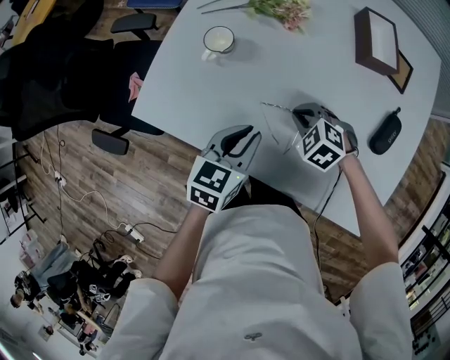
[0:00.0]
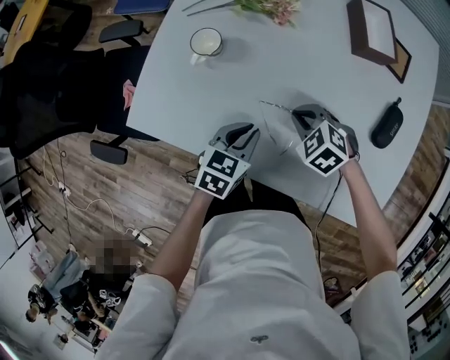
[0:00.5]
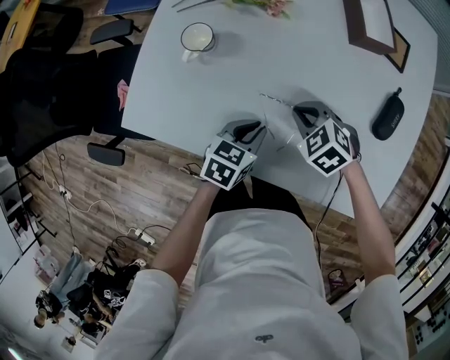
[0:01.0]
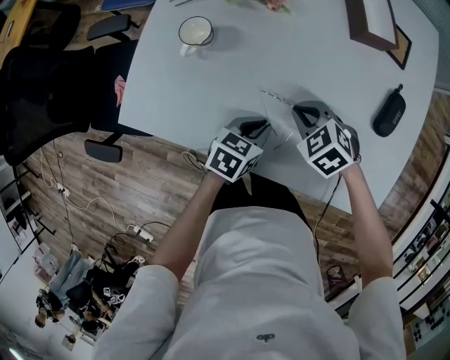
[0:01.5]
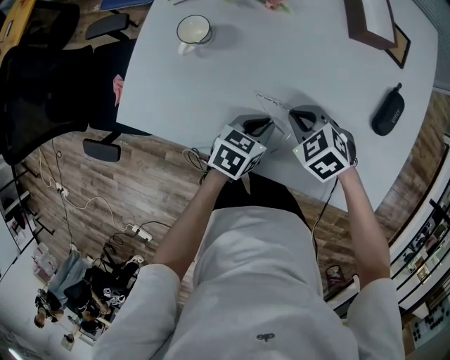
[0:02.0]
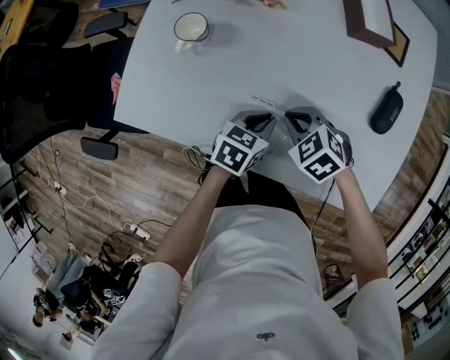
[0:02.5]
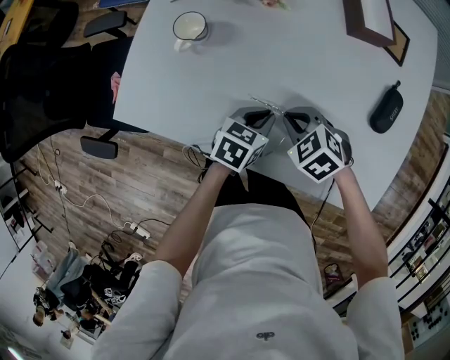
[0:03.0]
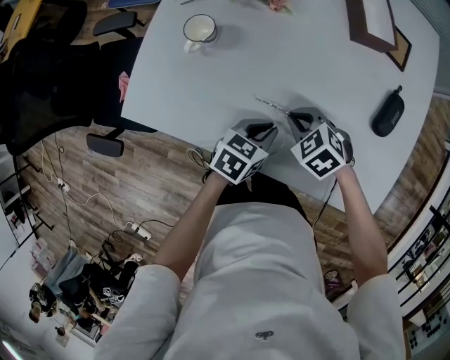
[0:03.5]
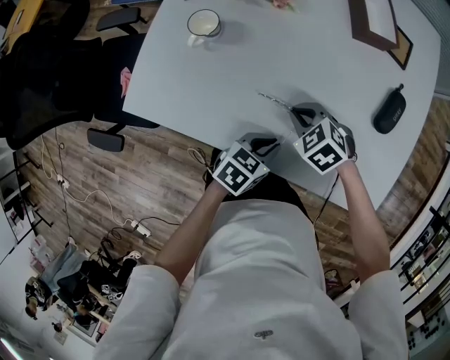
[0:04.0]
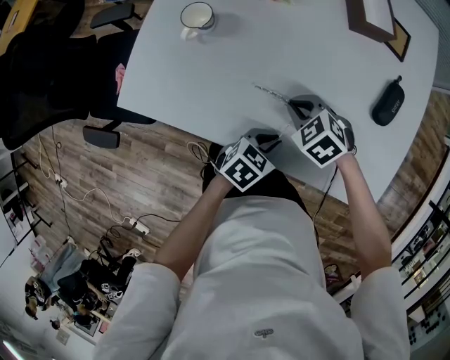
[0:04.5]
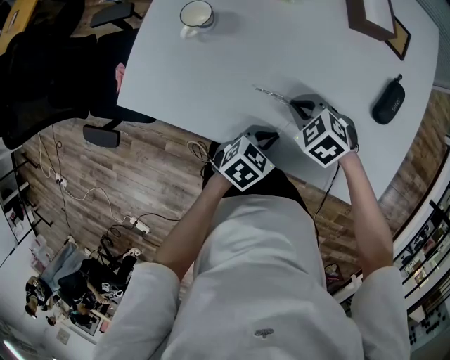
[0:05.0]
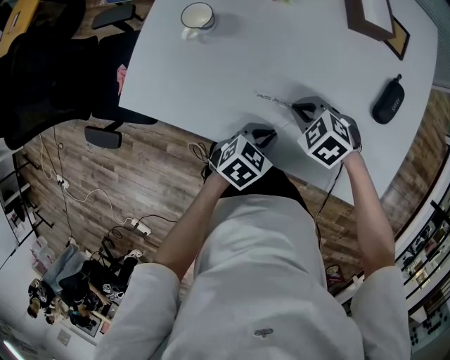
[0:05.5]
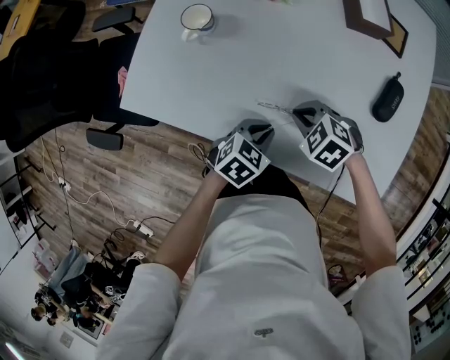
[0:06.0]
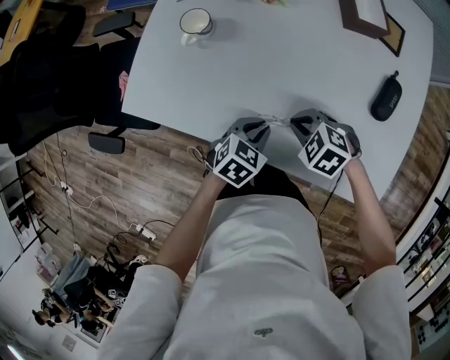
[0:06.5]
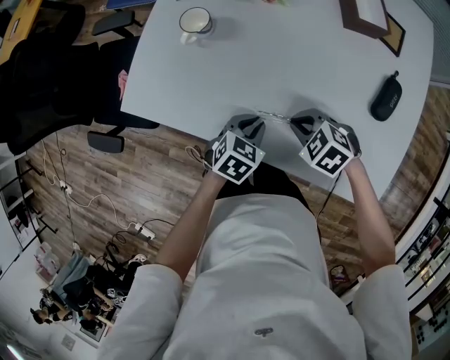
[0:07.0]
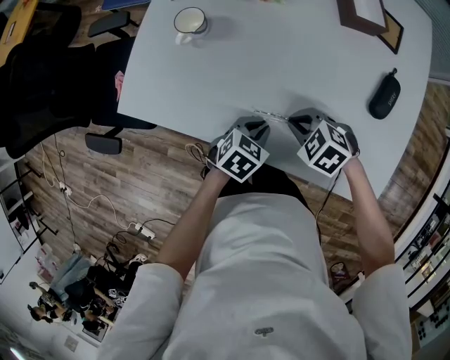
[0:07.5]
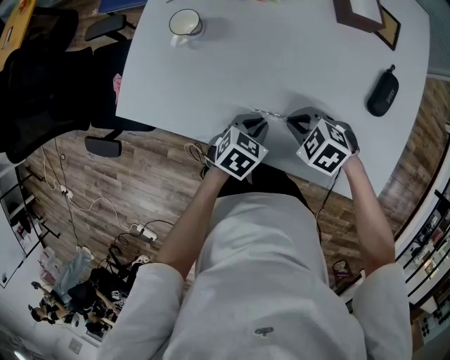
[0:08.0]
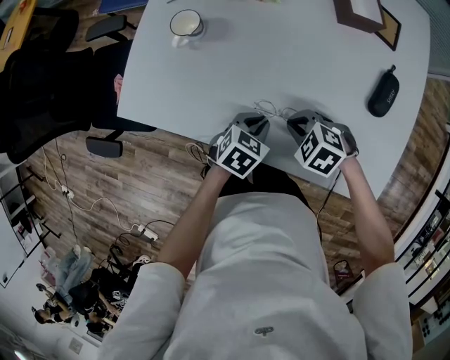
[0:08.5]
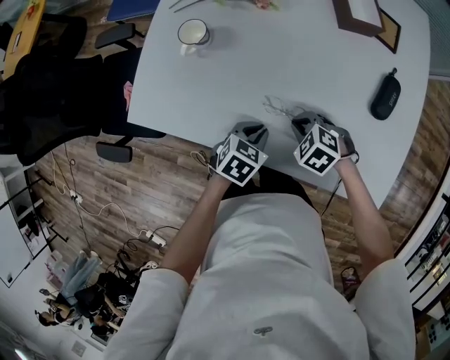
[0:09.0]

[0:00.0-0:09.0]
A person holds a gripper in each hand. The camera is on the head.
0:00.0 to 0:02.0: The left gripper is displaced downward and to the right by roughly 15 cm, and changes its angle by about 20 degrees.
0:02.0 to 0:04.5: The left gripper heads backward, covering roughly 10 cm.
0:04.5 to 0:07.0: The right gripper ends up approximately 5 cm from where it was, while the left gripper changes place by roughly 5 cm.
0:07.0 to 0:09.0: The grippers move only a little.

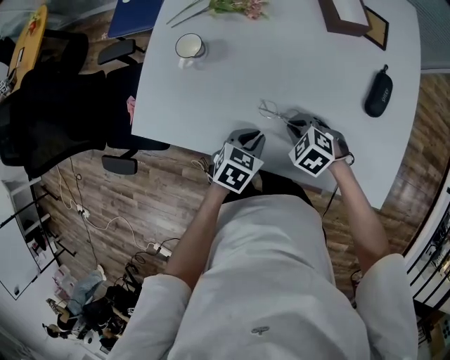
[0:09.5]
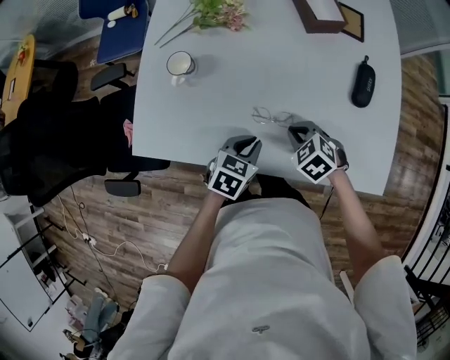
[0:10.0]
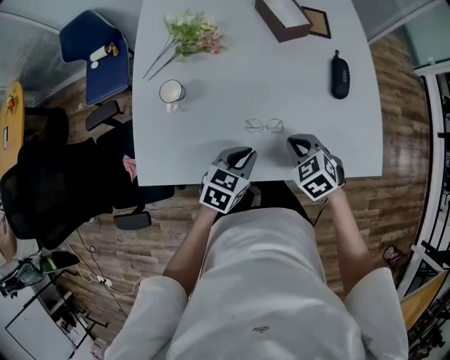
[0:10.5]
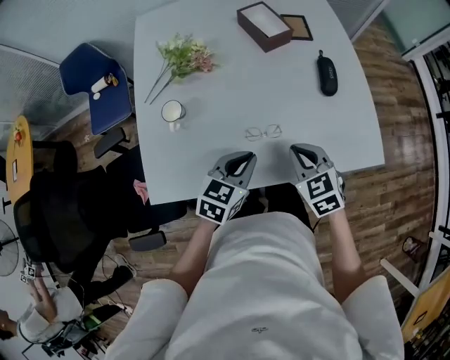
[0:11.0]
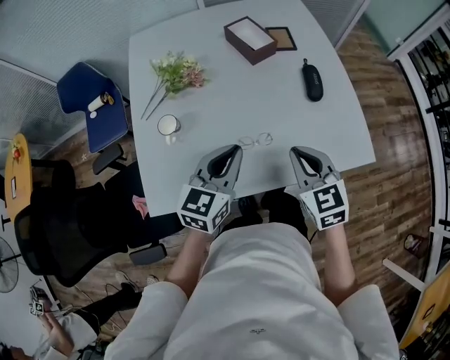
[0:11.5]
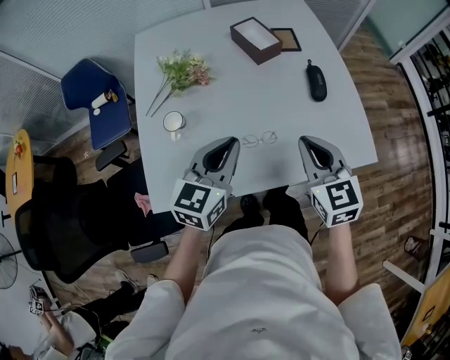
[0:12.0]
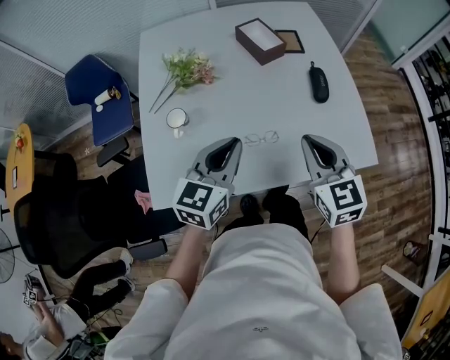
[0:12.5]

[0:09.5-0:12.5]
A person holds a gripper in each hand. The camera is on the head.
0:09.5 to 0:11.0: The two grippers go approximately 15 cm upward. The right gripper swivels roughly 50 degrees. Meanwhile the left gripper rotates roughly 30 degrees.
0:11.0 to 0:12.5: The grippers both shift upward by approximately 15 cm. The right gripper rotates some 20 degrees.

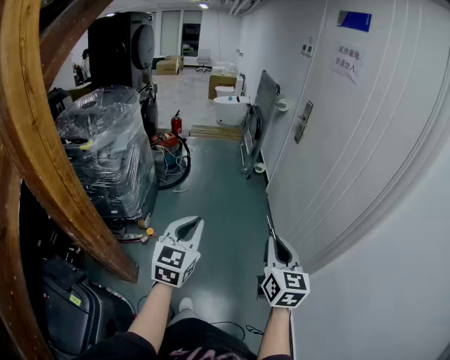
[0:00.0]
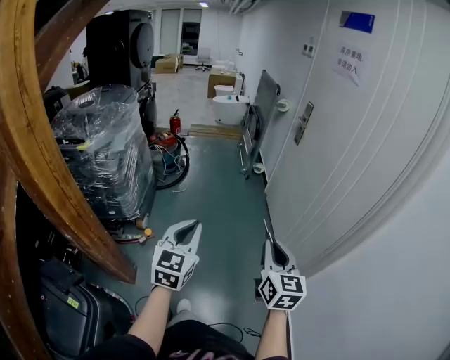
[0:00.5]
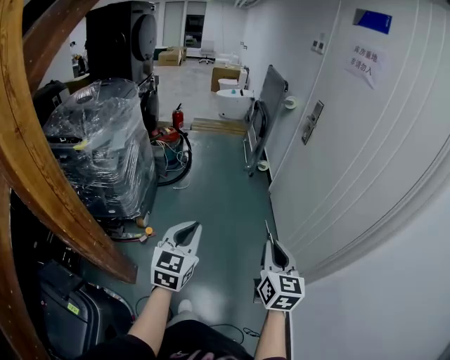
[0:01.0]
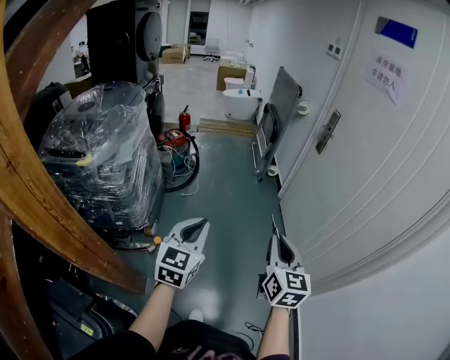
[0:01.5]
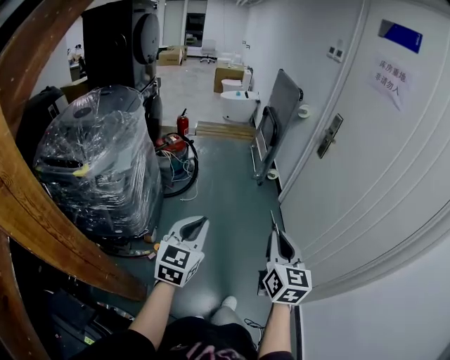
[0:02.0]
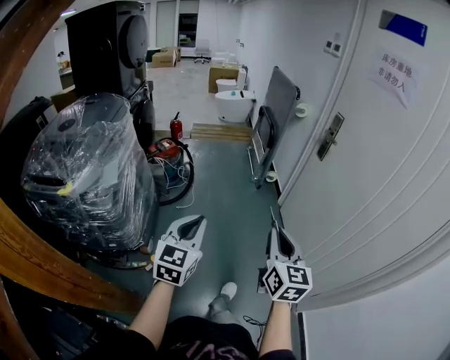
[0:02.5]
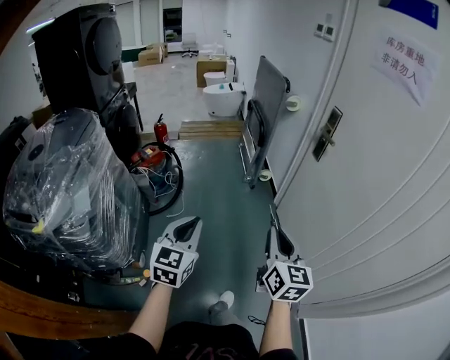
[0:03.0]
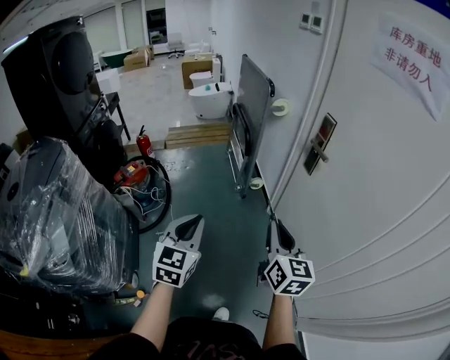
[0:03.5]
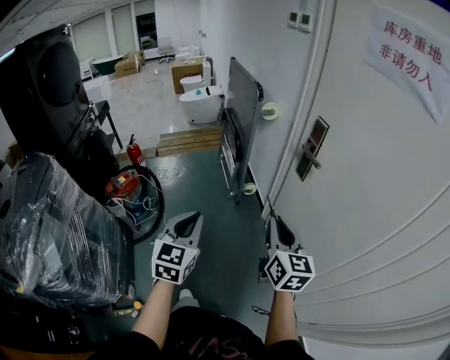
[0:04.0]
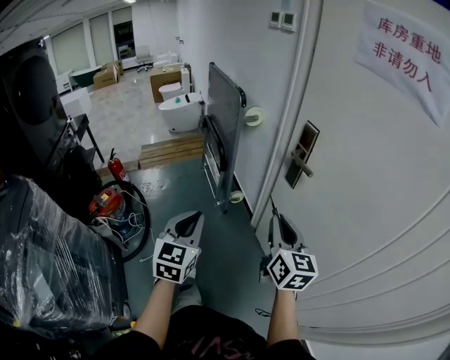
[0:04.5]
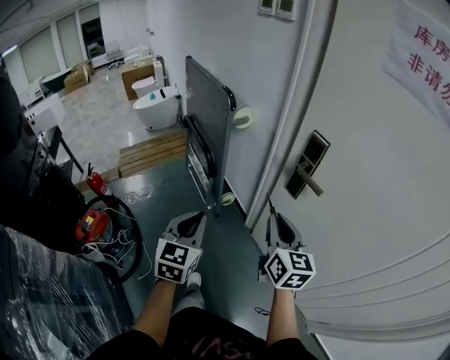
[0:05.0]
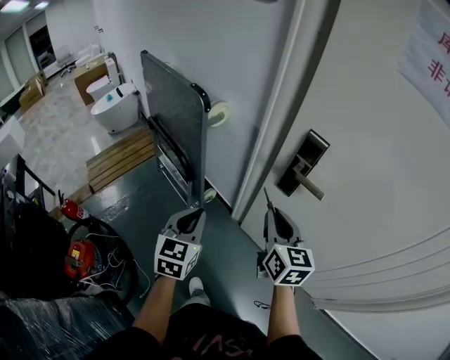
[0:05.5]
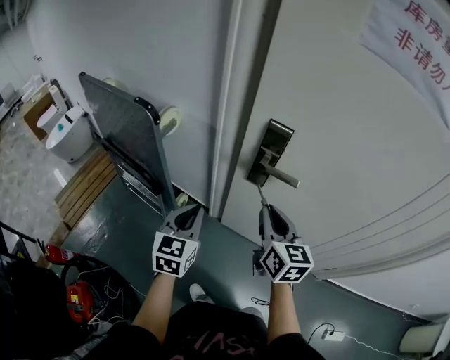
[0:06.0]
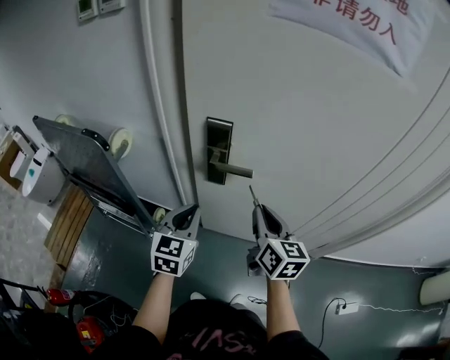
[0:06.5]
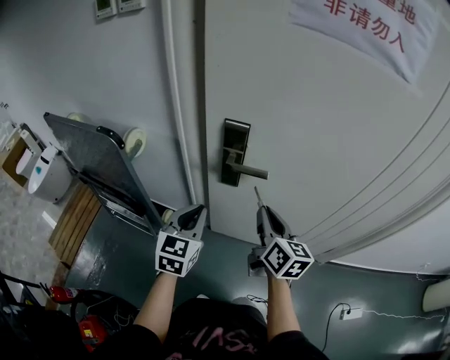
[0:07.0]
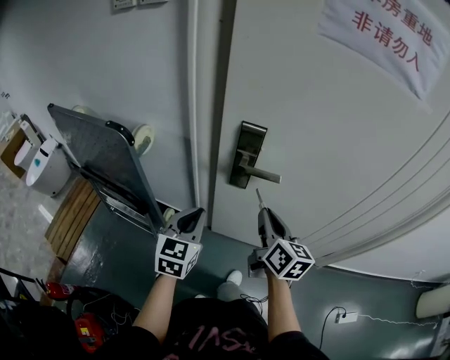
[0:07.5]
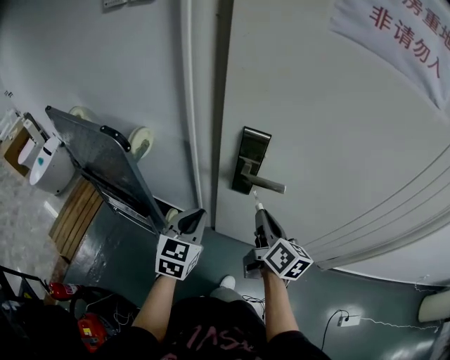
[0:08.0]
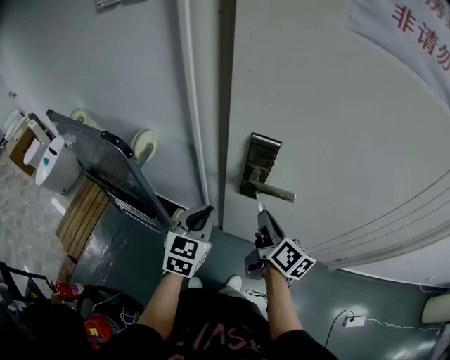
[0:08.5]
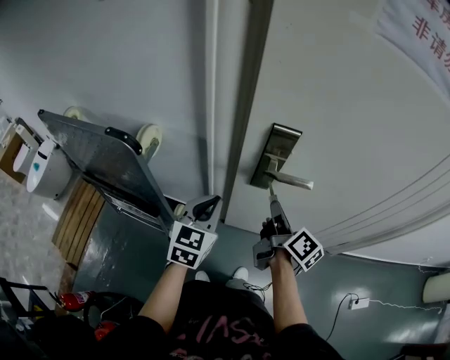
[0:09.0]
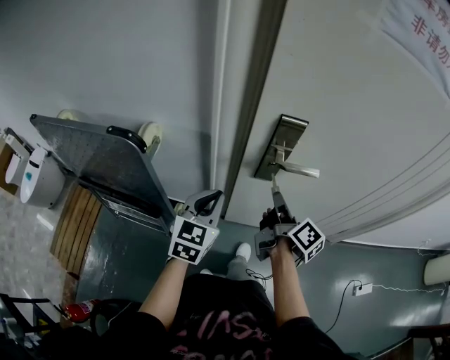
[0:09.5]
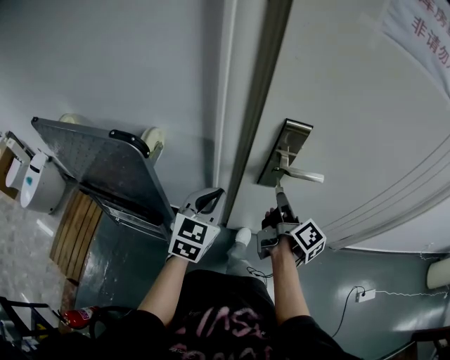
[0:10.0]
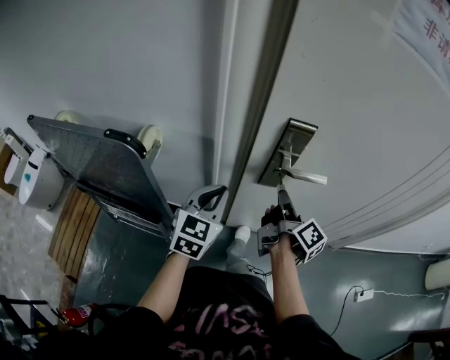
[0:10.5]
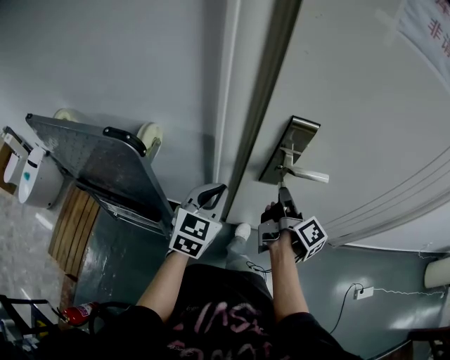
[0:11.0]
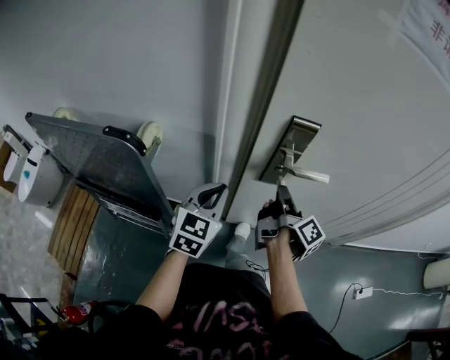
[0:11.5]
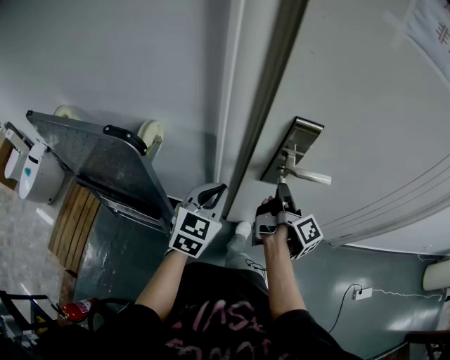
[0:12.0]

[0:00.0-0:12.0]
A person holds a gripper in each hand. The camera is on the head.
0:00.0 to 0:02.0: The grippers both shift forward and to the left by roughly 25 cm.
0:02.0 to 0:04.0: The pair of grippers is taken forward, approximately 50 cm.
0:04.0 to 0:06.0: The right gripper ends up about 25 cm from where it was, and swivels roughly 40 degrees; the left gripper changes place by approximately 40 cm, and swivels roughly 50 degrees.
0:06.0 to 0:08.0: The right gripper reaches some 10 cm to the right, then returns, and changes its angle by about 30 degrees. Meanwhile the left gripper goes roughly 5 cm forward.
0:08.0 to 0:10.0: The right gripper moves roughly 5 cm, and turns by approximately 40 degrees, while the left gripper shifts roughly 5 cm to the left.
0:10.0 to 0:12.0: The grippers move only a little.

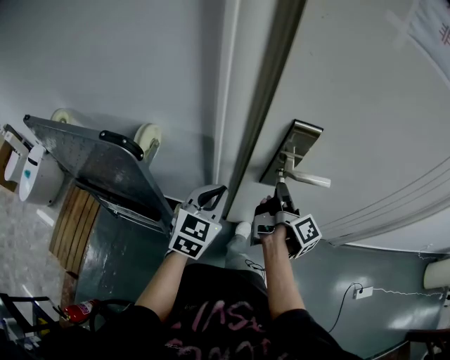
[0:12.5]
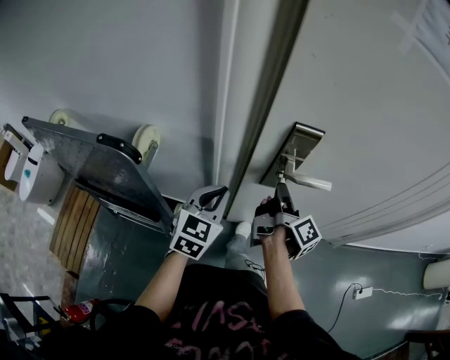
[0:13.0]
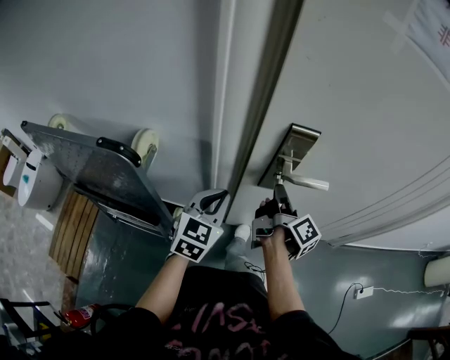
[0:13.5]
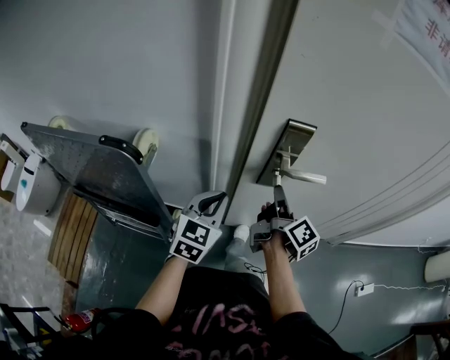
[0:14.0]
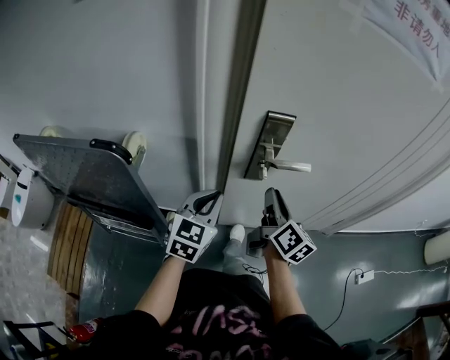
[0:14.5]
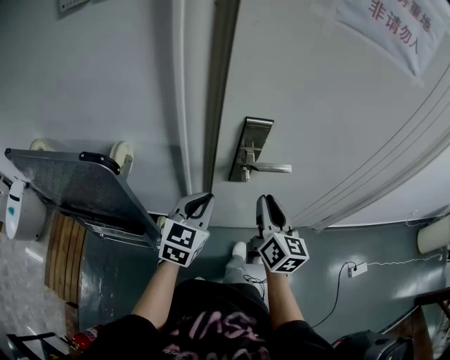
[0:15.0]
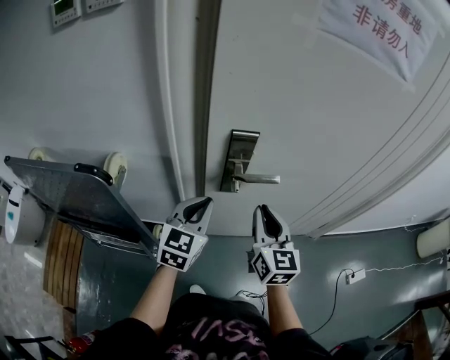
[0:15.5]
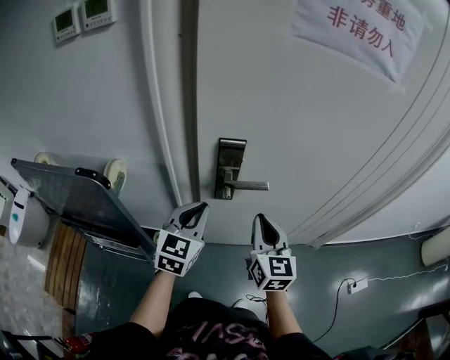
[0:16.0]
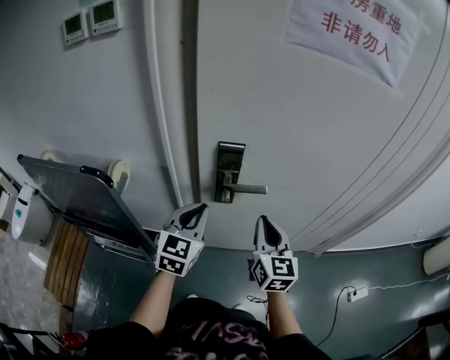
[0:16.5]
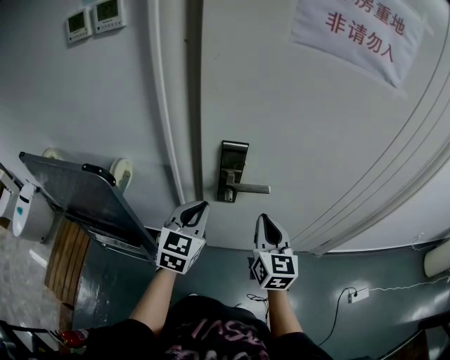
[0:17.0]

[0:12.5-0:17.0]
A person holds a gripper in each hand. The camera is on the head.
0:12.5 to 0:14.5: The right gripper heads backward, covering some 5 cm, and rotates around the line of its fingers by roughly 40 degrees, counterclockwise from behind.
0:14.5 to 0:17.0: The two grippers go approximately 10 cm upward and to the right. The right gripper turns by roughly 40 degrees.
